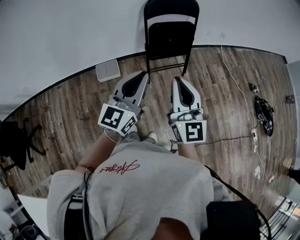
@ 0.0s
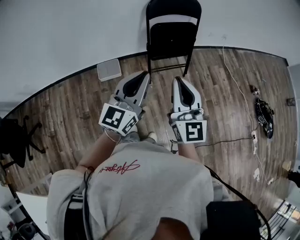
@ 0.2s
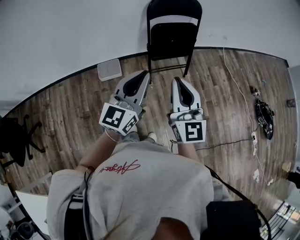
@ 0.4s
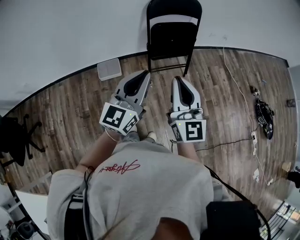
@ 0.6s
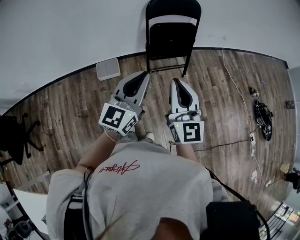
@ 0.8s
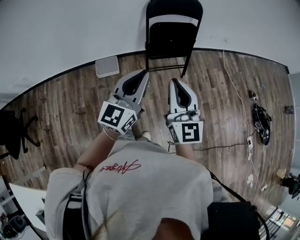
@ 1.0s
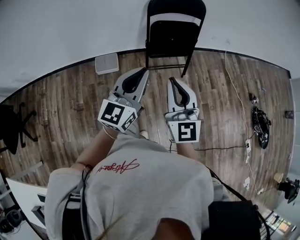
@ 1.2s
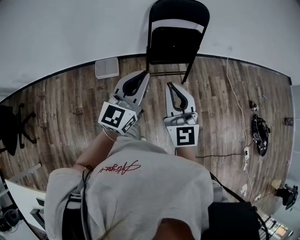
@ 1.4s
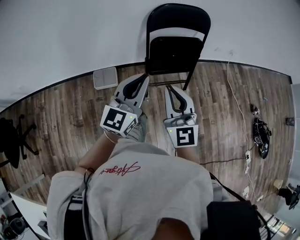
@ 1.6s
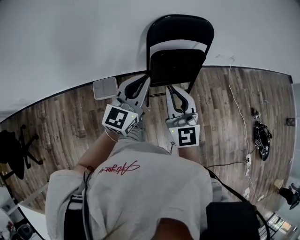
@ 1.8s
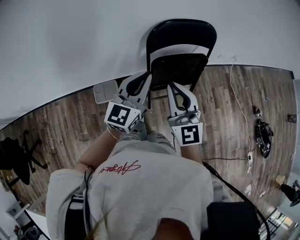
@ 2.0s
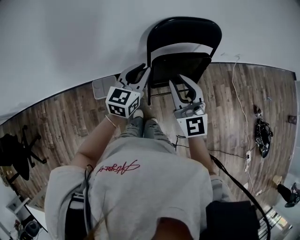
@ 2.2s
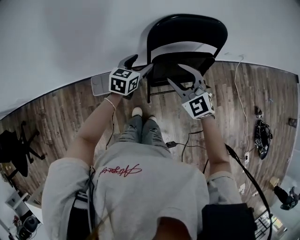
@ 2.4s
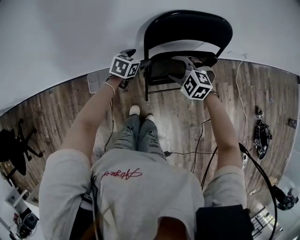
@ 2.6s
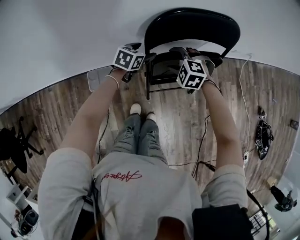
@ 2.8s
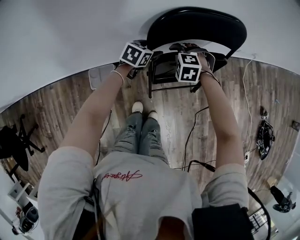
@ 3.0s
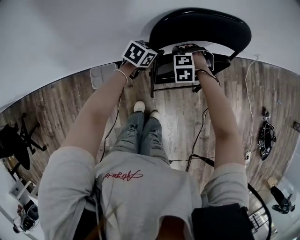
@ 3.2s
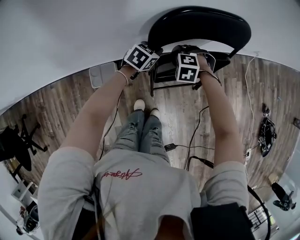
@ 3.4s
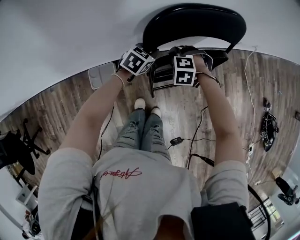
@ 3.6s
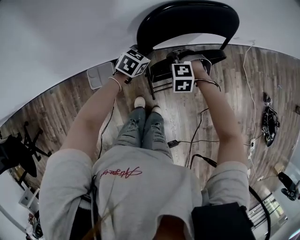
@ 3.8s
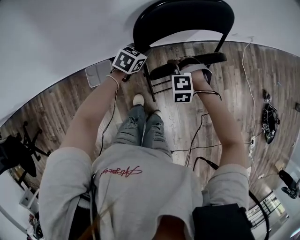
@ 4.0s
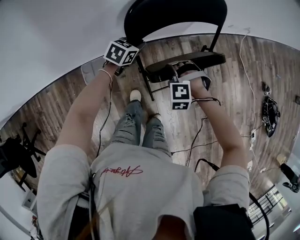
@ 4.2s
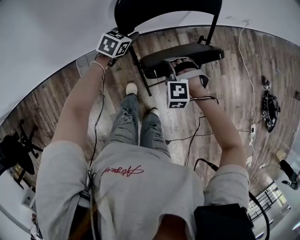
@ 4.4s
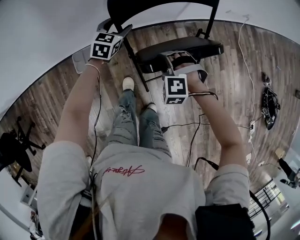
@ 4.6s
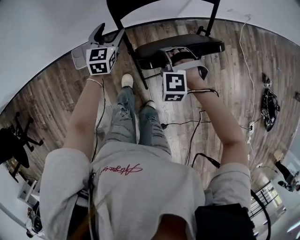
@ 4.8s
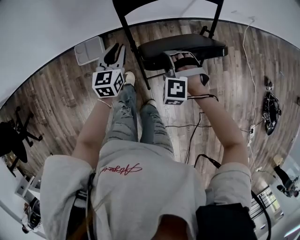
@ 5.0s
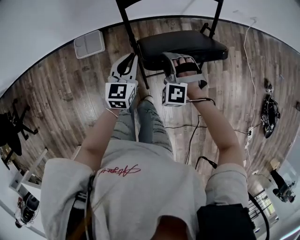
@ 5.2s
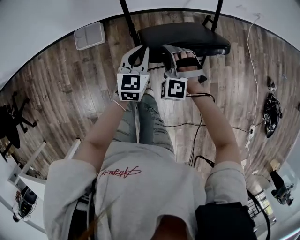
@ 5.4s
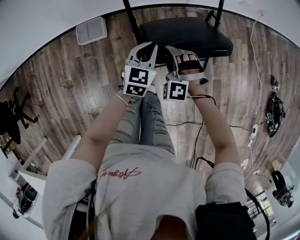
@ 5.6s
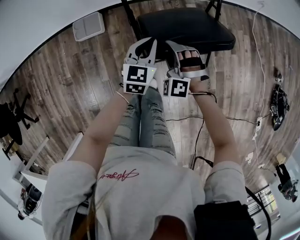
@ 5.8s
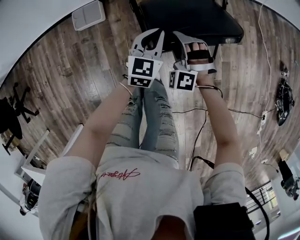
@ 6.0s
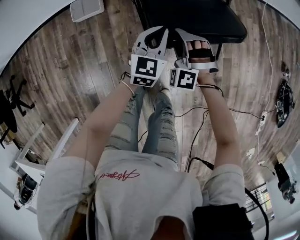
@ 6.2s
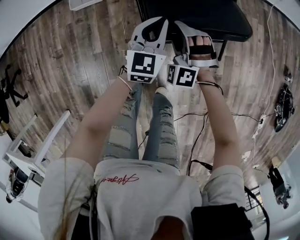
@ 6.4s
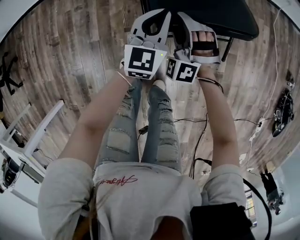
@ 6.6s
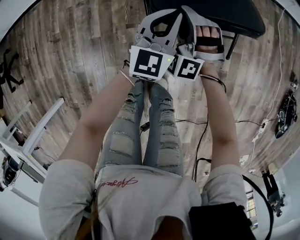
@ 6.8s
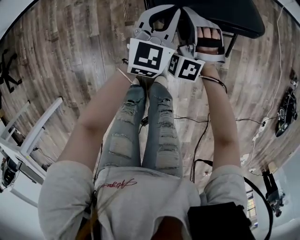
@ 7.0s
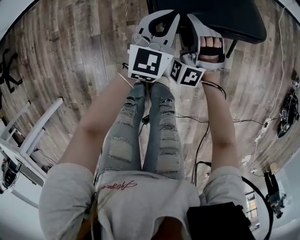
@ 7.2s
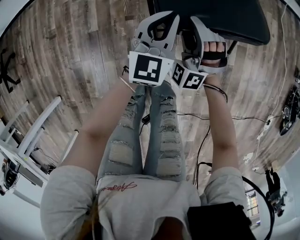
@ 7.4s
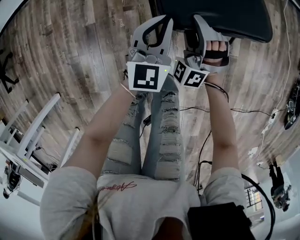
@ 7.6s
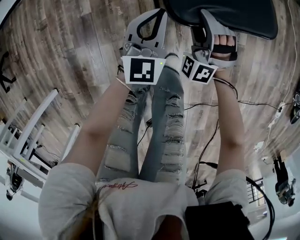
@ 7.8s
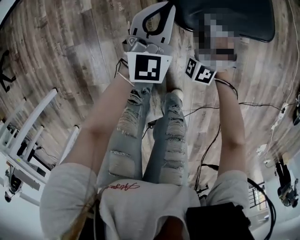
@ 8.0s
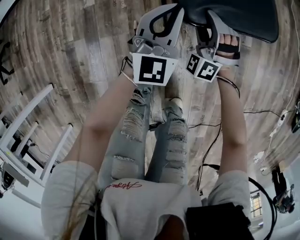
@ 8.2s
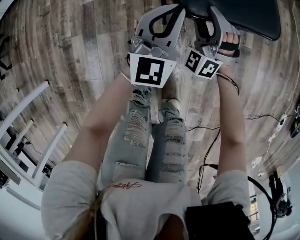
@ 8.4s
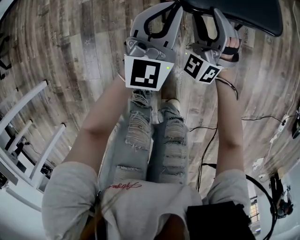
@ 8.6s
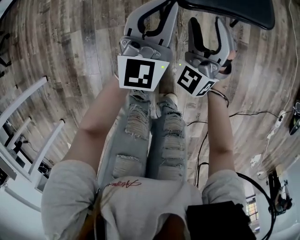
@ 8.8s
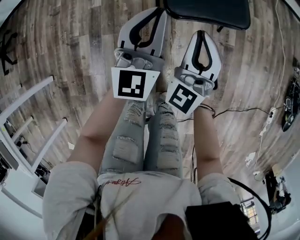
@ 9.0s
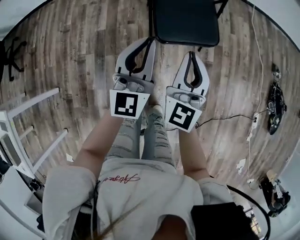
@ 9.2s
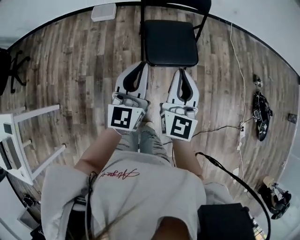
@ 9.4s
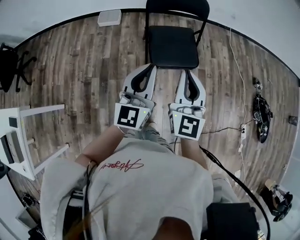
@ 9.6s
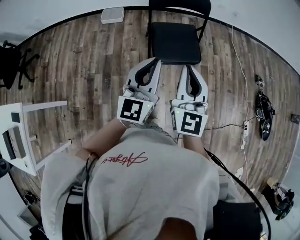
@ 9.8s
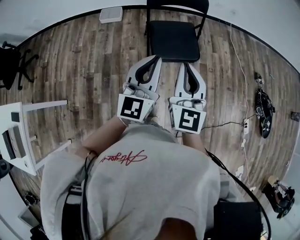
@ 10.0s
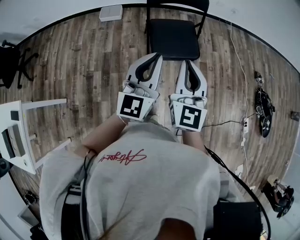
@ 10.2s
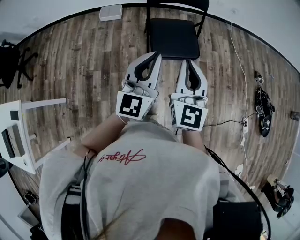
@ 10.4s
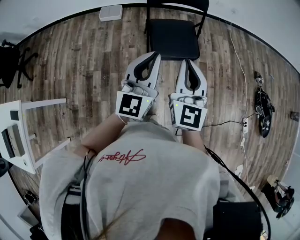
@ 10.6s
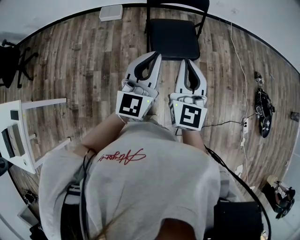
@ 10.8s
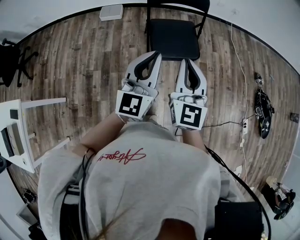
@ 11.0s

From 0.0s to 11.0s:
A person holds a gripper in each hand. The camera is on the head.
From 0.0s to 1.6s: Both grippers move forward, roughly 15 cm.
From 1.6s to 3.2s: The left gripper changes place by about 50 cm, tilts its fingers about 50 degrees downward, and opens, then closes again. The right gripper shifts by about 50 cm, tips its fingers downward by approximately 90 degrees, and opens up.
From 3.2s to 4.8s: The left gripper changes place by some 10 cm, changes its angle by approximately 40 degrees, and opens its fingers. The right gripper changes place by approximately 20 cm.
From 4.8s to 6.2s: The left gripper goes approximately 35 cm backward and to the right, and closes up. Meanwhile the right gripper moves backward and downward, approximately 20 cm, and turns by roughly 20 degrees.
From 6.2s to 7.8s: The right gripper goes some 25 cm backward, downward and to the right. The left gripper is displaced backward and downward by some 25 cm.
From 7.8s to 9.4s: Both grippers travel together upward and backward, about 50 cm. The left gripper rotates approximately 30 degrees; the right gripper twists about 70 degrees clockwise, seen from behind, and closes up.
From 9.4s to 11.0s: The two grippers go about 5 cm upward.

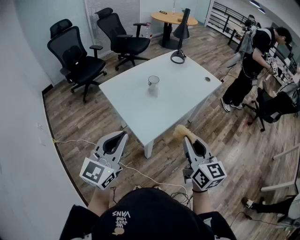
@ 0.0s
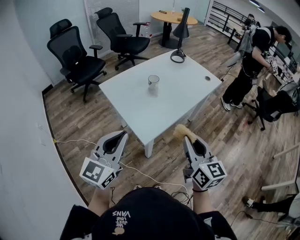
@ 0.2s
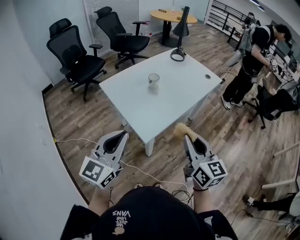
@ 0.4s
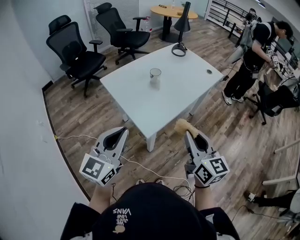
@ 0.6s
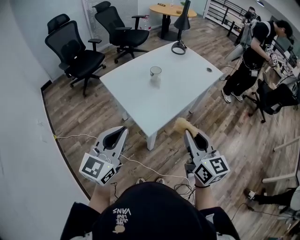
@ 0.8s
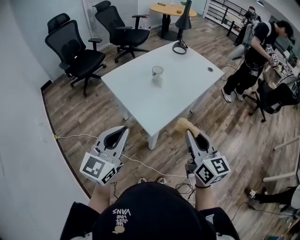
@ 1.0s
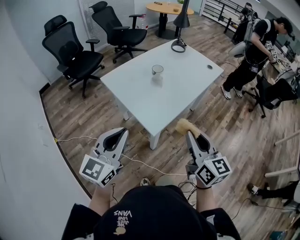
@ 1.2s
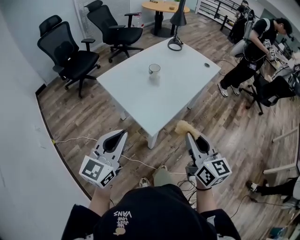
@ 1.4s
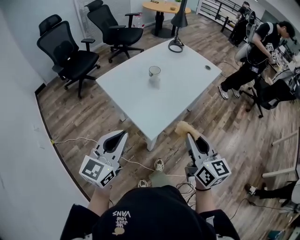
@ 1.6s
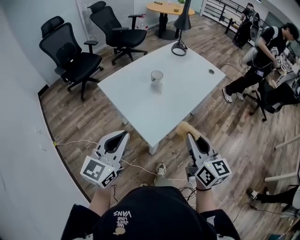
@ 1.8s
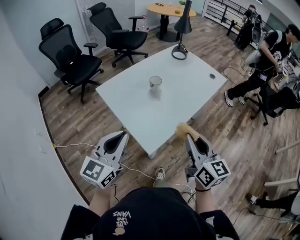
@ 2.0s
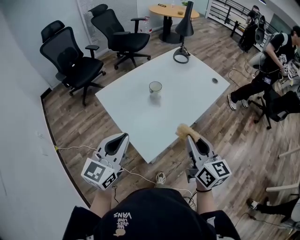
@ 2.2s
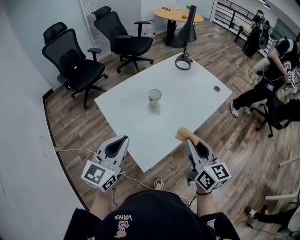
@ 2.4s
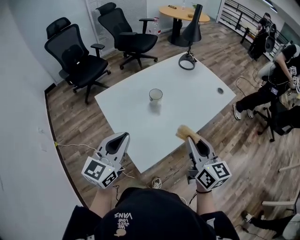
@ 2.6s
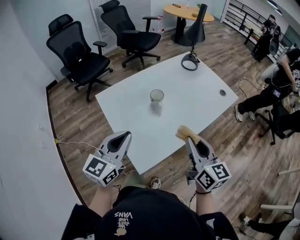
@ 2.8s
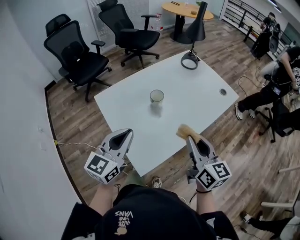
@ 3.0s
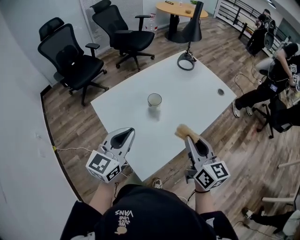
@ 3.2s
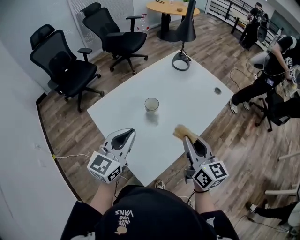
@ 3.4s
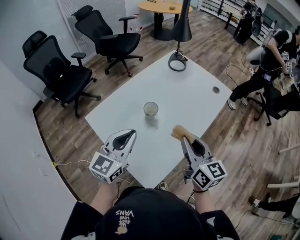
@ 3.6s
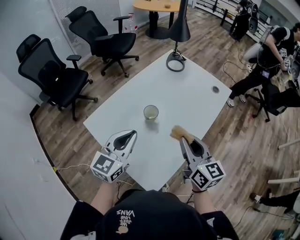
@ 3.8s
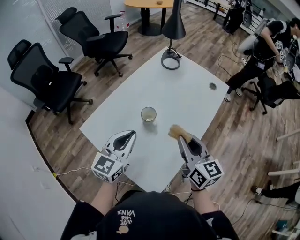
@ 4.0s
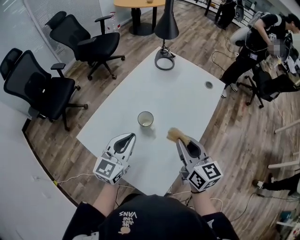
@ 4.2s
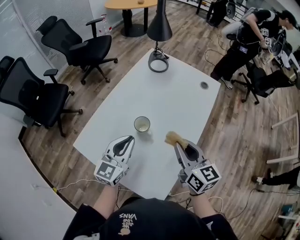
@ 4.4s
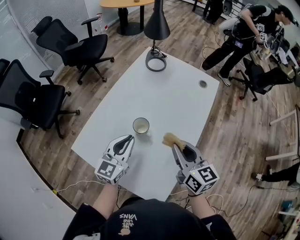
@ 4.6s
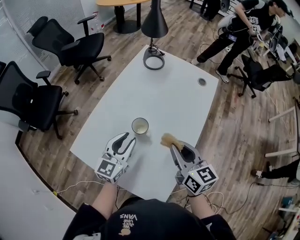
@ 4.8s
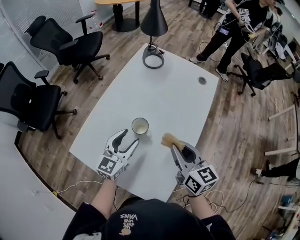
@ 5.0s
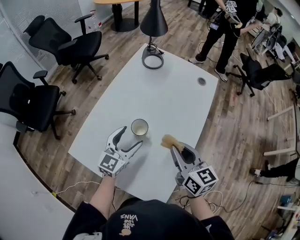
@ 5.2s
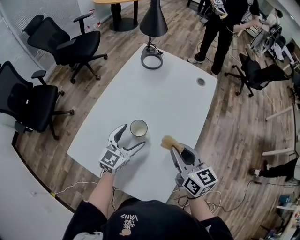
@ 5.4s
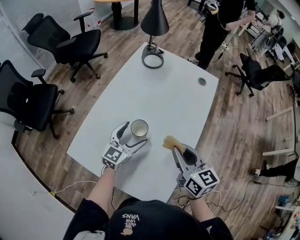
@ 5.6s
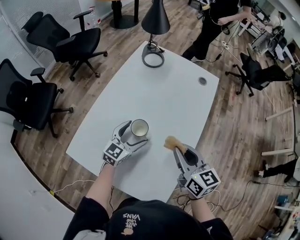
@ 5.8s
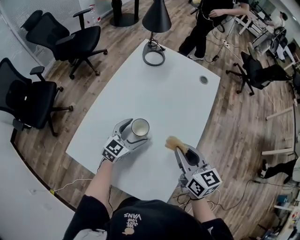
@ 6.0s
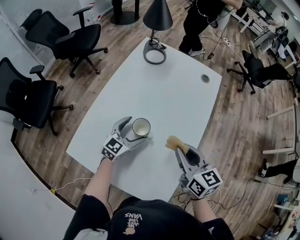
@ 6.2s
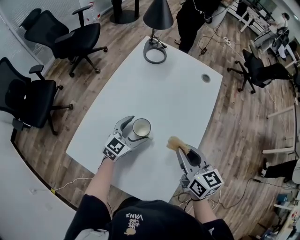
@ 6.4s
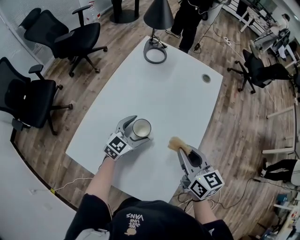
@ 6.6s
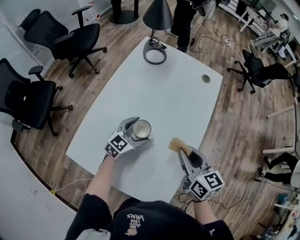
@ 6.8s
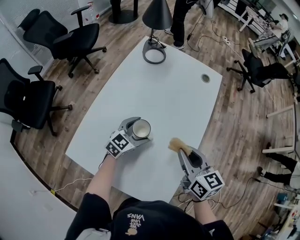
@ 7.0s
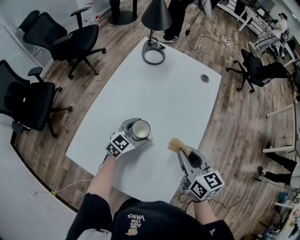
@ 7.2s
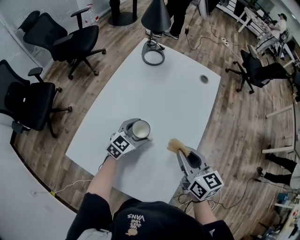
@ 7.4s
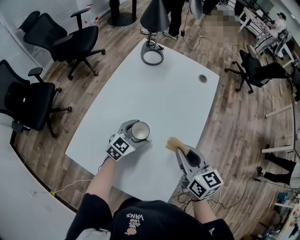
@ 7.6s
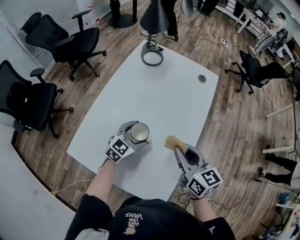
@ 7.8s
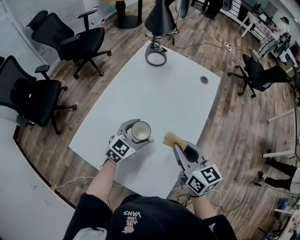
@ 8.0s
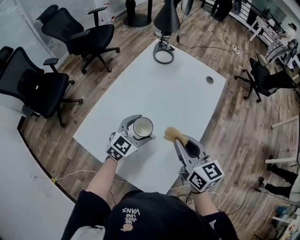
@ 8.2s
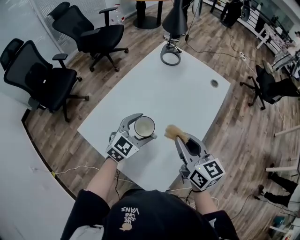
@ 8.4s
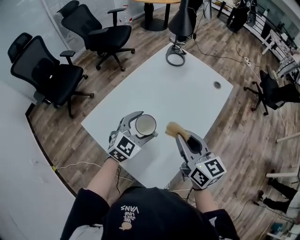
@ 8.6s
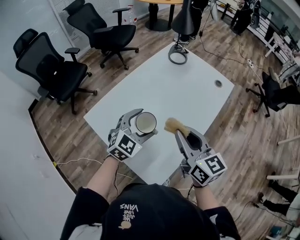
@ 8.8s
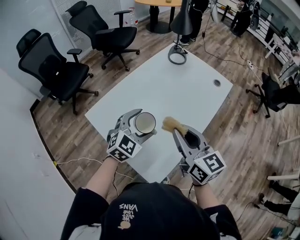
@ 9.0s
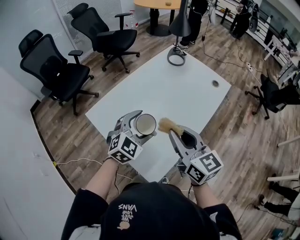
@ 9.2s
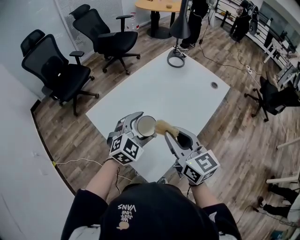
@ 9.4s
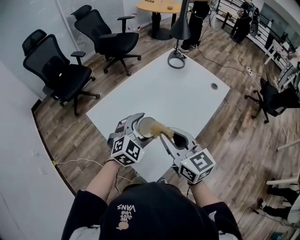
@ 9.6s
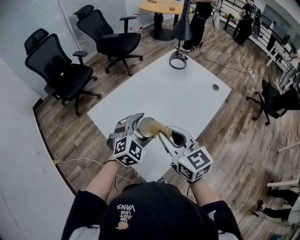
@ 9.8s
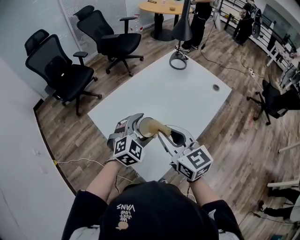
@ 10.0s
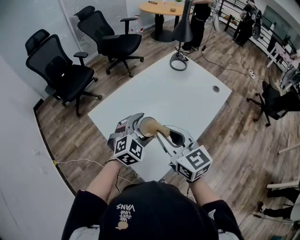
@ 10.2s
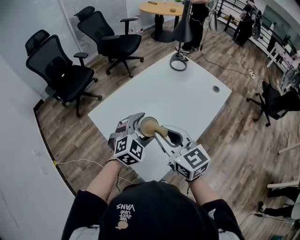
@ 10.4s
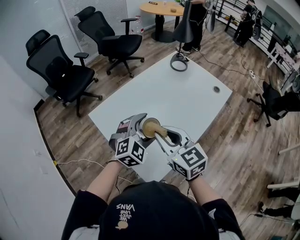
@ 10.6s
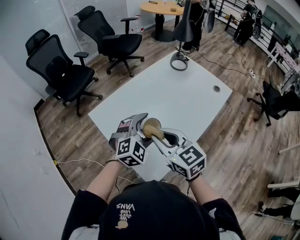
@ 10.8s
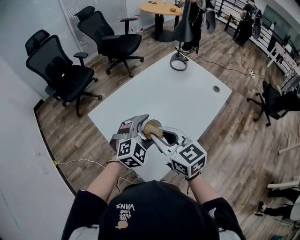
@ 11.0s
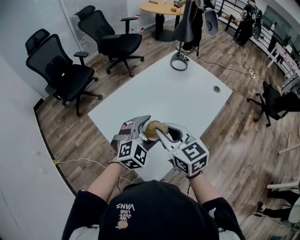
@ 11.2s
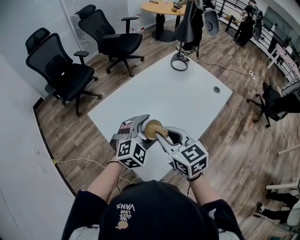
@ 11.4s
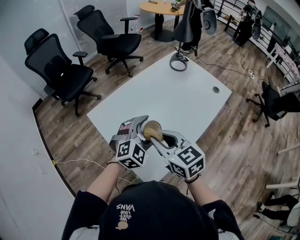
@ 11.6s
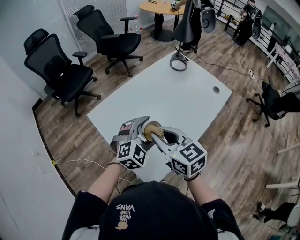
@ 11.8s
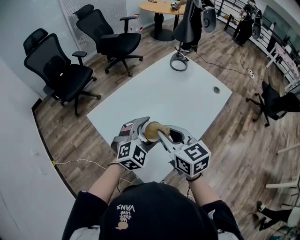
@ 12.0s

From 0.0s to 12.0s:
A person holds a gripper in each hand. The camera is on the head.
From 0.0s to 1.6s: The left gripper ends up approximately 5 cm from where it was.
From 1.6s to 3.0s: Both grippers travel together forward, approximately 20 cm.
From 3.0s to 4.4s: The left gripper moves forward, approximately 20 cm, and swivels roughly 20 degrees. The right gripper heads forward and to the left, covering roughly 15 cm.
From 4.4s to 6.0s: The left gripper moves downward and forward, approximately 15 cm, swivels some 20 degrees, and opens up.
From 6.0s to 7.6s: The grippers stay close to where they were, moving slightly.
From 7.6s to 9.0s: The right gripper is displaced upward and backward by about 10 cm, and swivels approximately 30 degrees. Meanwhile the left gripper shifts some 20 cm upward and backward, and rotates about 30 degrees.
From 9.0s to 10.4s: The right gripper moves to the left, about 5 cm.
From 10.4s to 12.0s: The grippers make only small movements.

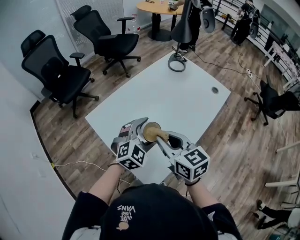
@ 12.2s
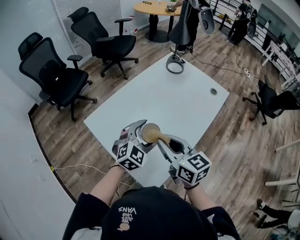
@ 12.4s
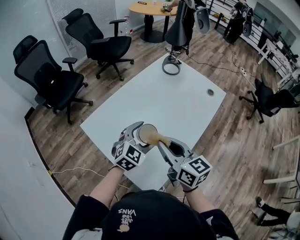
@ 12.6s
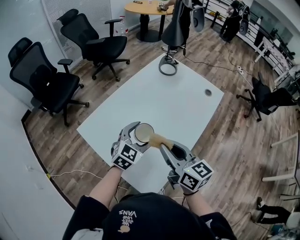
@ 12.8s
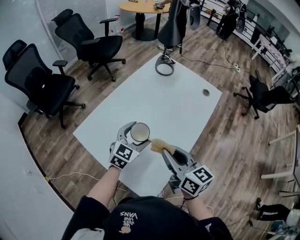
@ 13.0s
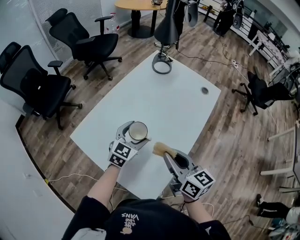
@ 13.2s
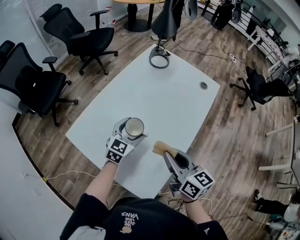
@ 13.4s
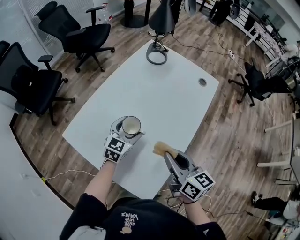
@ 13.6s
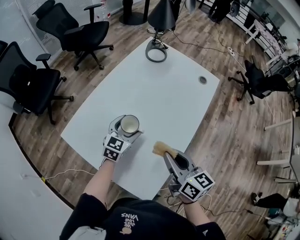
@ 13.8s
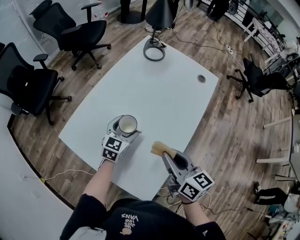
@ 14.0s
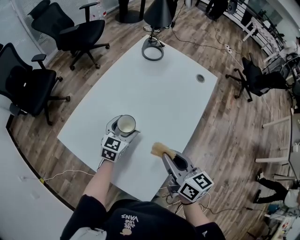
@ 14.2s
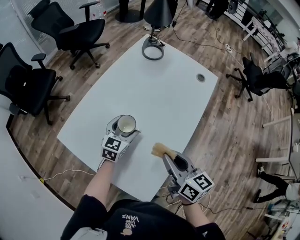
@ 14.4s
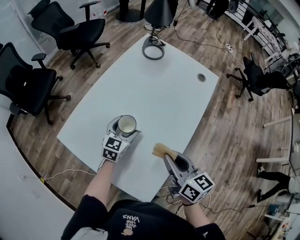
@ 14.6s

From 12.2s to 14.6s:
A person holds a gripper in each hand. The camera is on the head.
From 12.2s to 13.4s: The right gripper moves to the right, some 5 cm, and rotates about 30 degrees. Meanwhile the left gripper shifts some 15 cm forward and downward, and swivels some 30 degrees.
From 13.4s to 14.6s: The left gripper goes roughly 5 cm downward.
